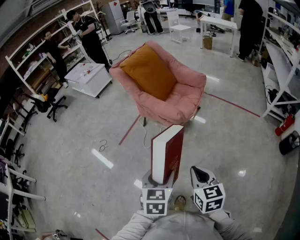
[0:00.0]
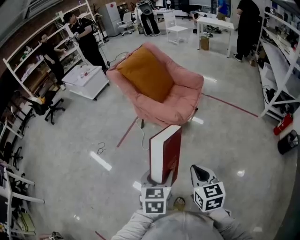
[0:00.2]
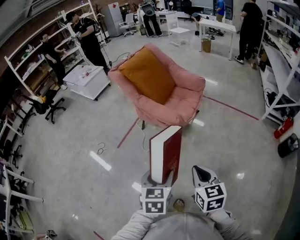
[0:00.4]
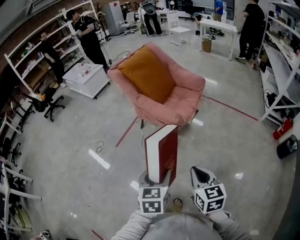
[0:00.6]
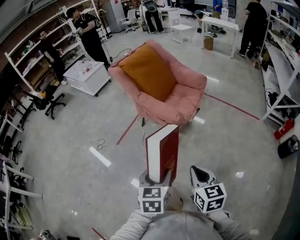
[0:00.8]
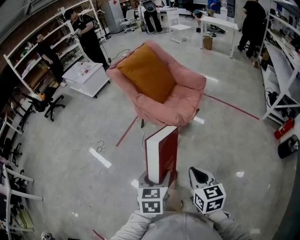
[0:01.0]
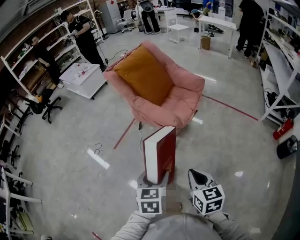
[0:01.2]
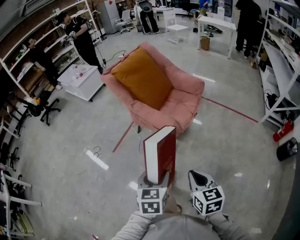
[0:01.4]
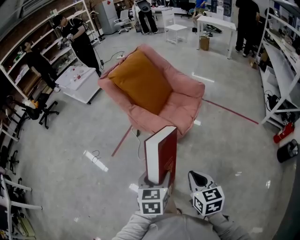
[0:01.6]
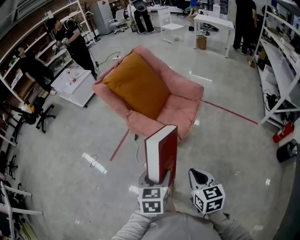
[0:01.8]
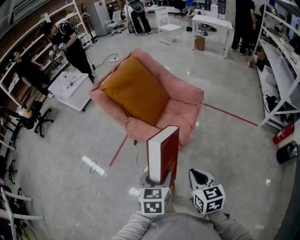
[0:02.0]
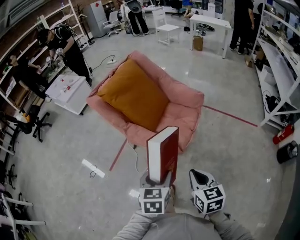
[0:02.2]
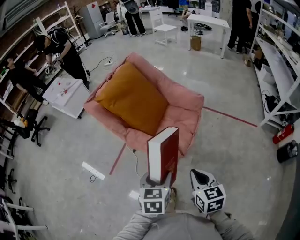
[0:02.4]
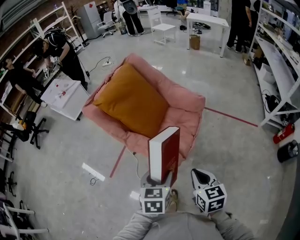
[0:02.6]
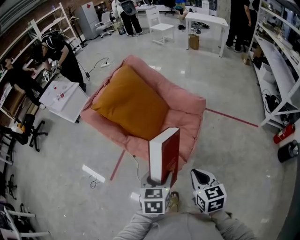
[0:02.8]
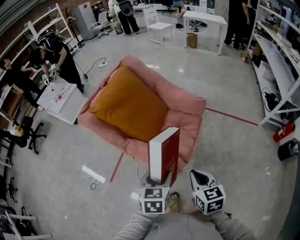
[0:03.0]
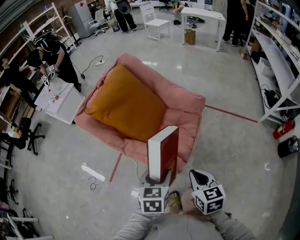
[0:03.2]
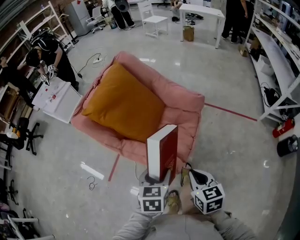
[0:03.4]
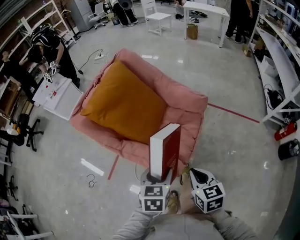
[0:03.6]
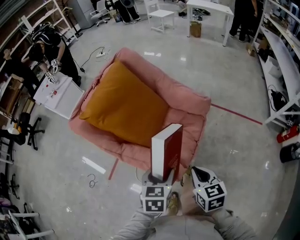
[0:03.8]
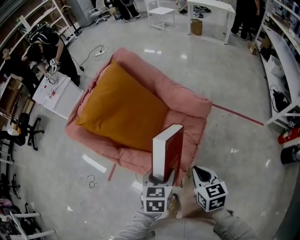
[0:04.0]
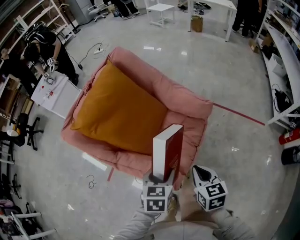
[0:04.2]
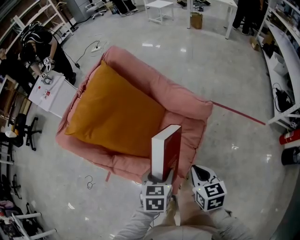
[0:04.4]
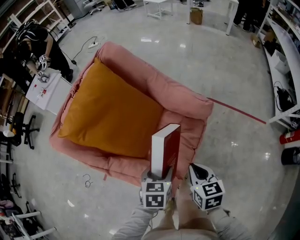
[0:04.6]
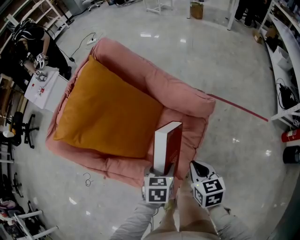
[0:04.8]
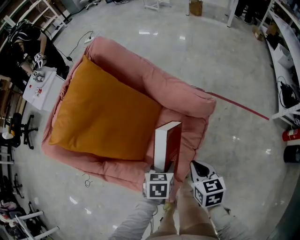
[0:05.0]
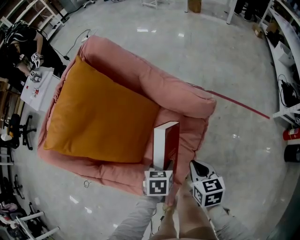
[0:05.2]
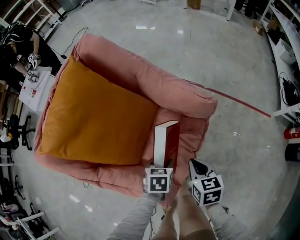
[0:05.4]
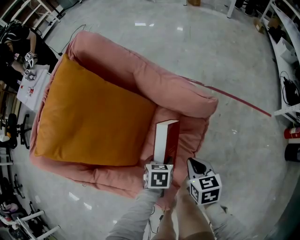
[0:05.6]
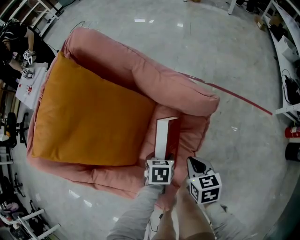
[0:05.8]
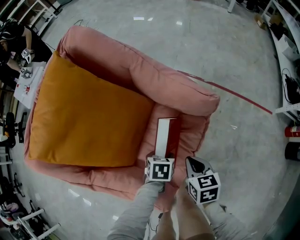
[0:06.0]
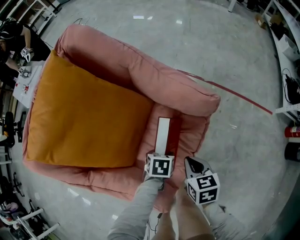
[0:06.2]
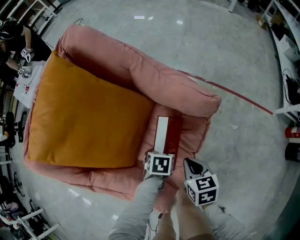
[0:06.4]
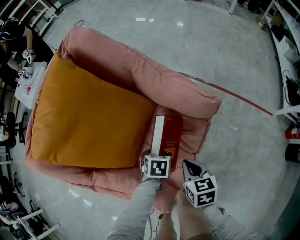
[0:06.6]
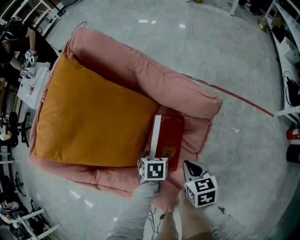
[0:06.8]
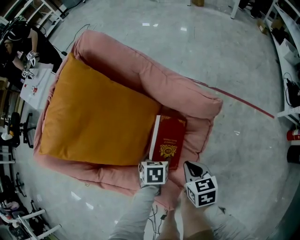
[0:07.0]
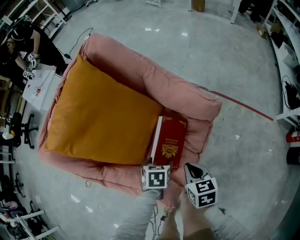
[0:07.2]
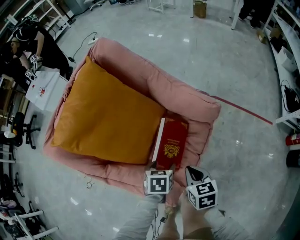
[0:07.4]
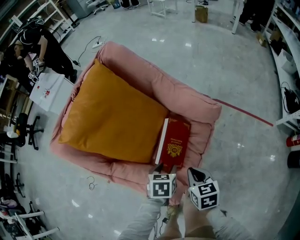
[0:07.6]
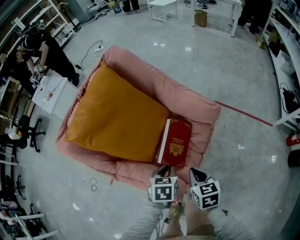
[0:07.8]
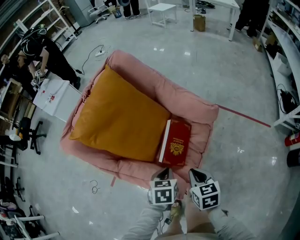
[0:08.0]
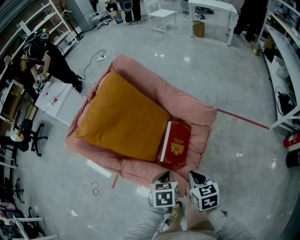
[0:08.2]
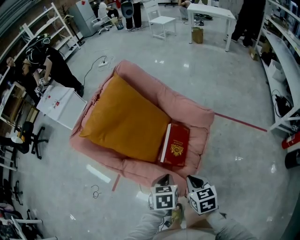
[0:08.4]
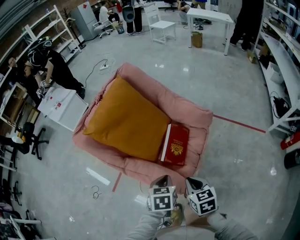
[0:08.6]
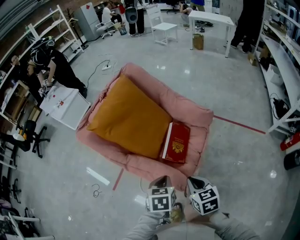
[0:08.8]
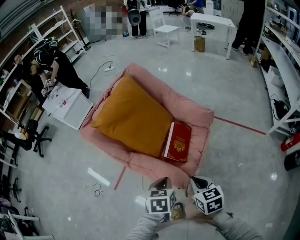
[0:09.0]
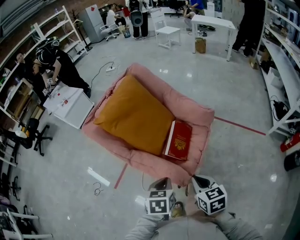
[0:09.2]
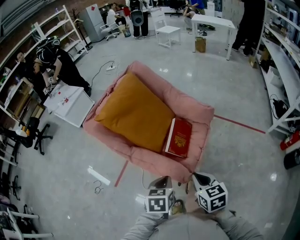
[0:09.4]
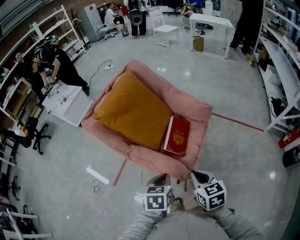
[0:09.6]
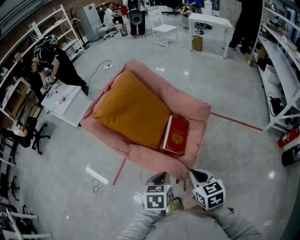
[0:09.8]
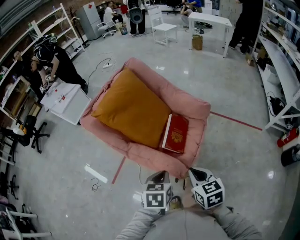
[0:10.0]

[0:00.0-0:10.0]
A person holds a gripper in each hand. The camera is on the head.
0:00.0 to 0:01.4: Both grippers travel together forward, approximately 10 cm.
0:01.4 to 0:02.8: Both grippers move forward, approximately 30 cm.
0:02.8 to 0:04.2: The grippers both shift forward by about 15 cm.
0:04.2 to 0:05.8: The two grippers go about 25 cm downward and forward. The left gripper swivels approximately 20 degrees.
0:05.8 to 0:07.2: The right gripper shifts by some 5 cm. The left gripper shifts by roughly 5 cm.
0:07.2 to 0:08.6: The right gripper goes approximately 20 cm backward and upward. Meanwhile the left gripper heads upward and backward, covering some 25 cm, and closes.
0:08.6 to 0:10.0: The right gripper heads backward and upward, covering some 10 cm. Meanwhile the left gripper goes approximately 10 cm backward.

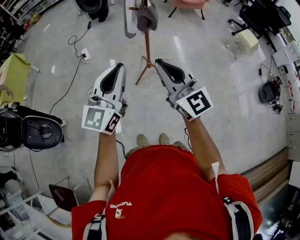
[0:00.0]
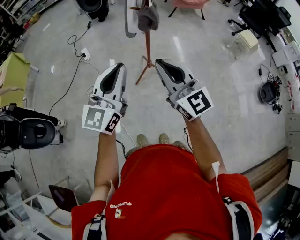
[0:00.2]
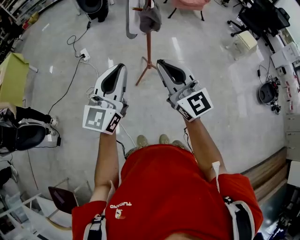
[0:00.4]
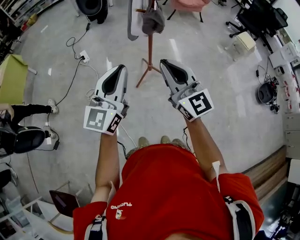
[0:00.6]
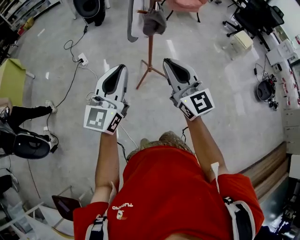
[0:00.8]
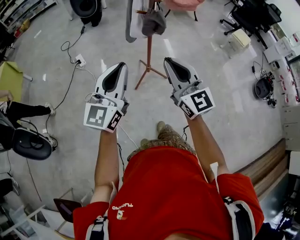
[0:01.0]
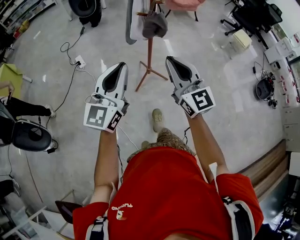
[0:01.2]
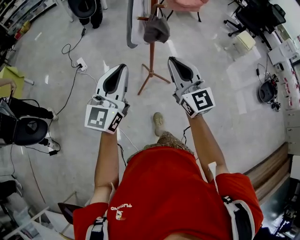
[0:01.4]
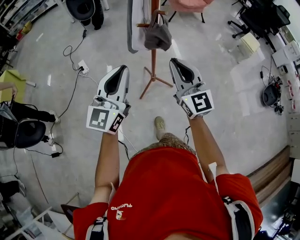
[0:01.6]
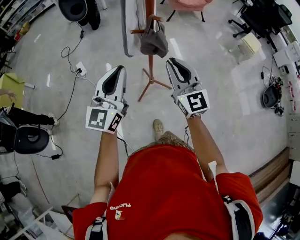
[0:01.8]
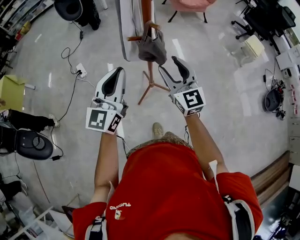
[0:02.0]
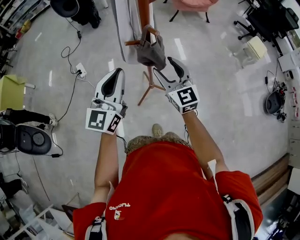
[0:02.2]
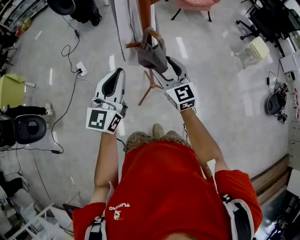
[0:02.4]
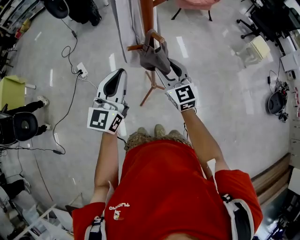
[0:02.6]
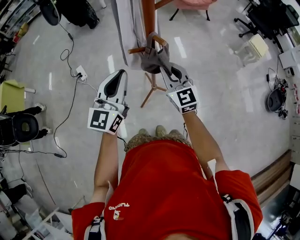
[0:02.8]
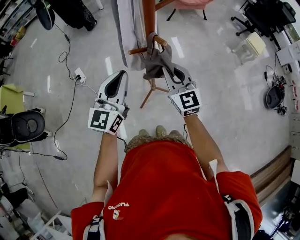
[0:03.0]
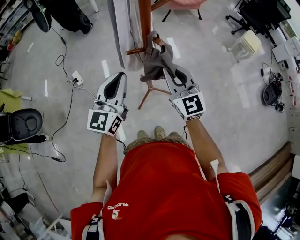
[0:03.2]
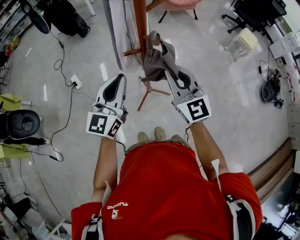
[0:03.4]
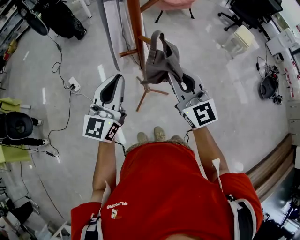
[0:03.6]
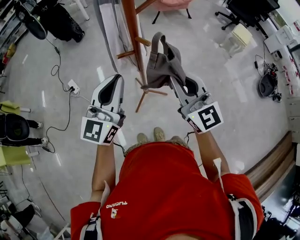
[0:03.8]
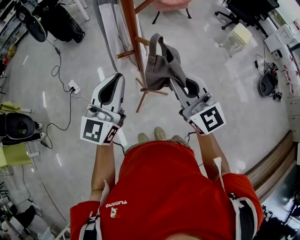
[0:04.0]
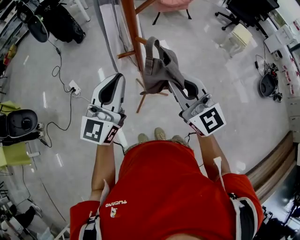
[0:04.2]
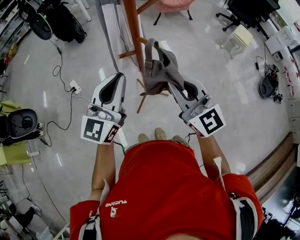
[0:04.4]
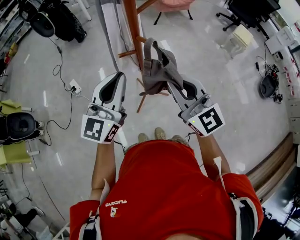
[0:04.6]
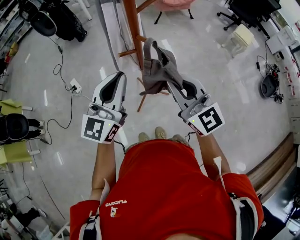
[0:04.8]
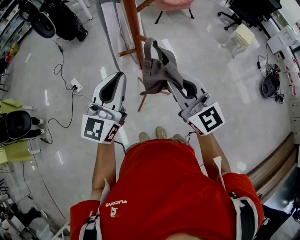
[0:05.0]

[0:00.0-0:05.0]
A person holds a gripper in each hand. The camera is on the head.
0:00.0 to 0:01.6: Both grippers move forward, roughly 20 cm.
0:01.6 to 0:03.4: Both grippers travel together forward, roughly 15 cm. The right gripper opens, then closes once more.
0:03.4 to 0:05.0: The right gripper moves backward, approximately 5 cm; the left gripper travels upward by roughly 5 cm.

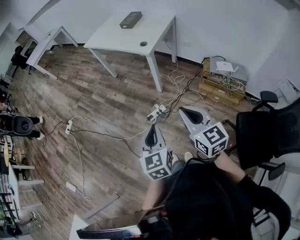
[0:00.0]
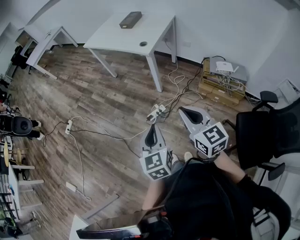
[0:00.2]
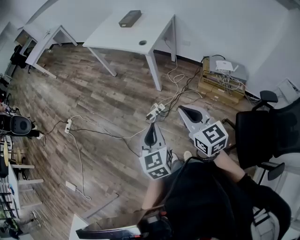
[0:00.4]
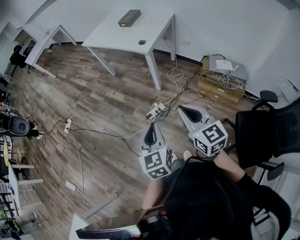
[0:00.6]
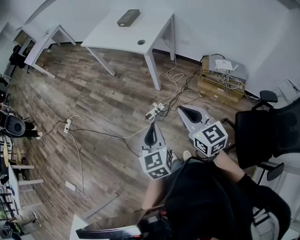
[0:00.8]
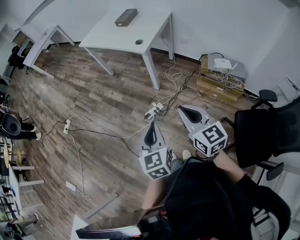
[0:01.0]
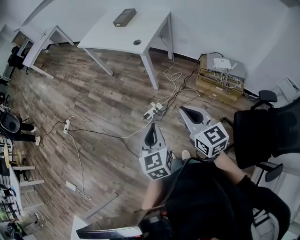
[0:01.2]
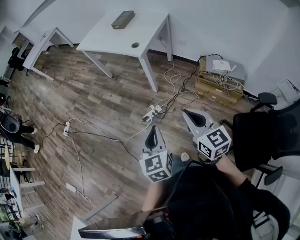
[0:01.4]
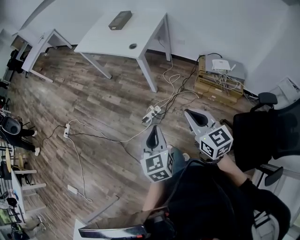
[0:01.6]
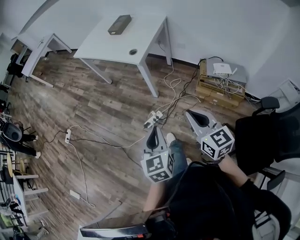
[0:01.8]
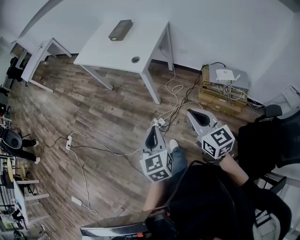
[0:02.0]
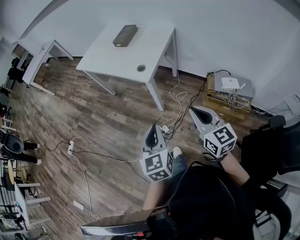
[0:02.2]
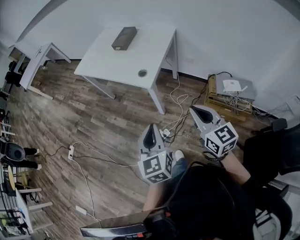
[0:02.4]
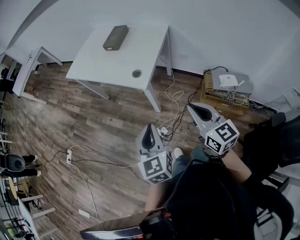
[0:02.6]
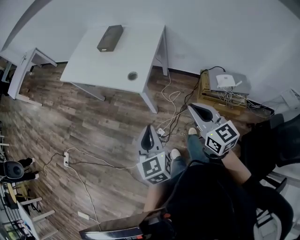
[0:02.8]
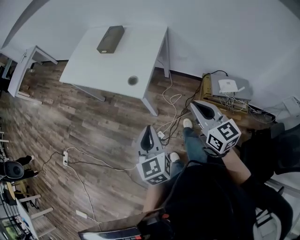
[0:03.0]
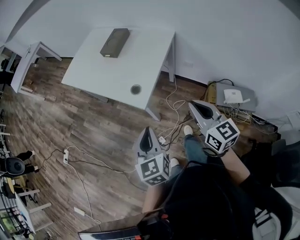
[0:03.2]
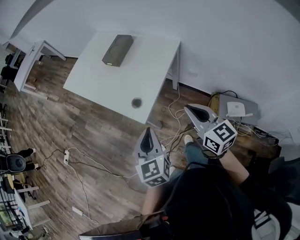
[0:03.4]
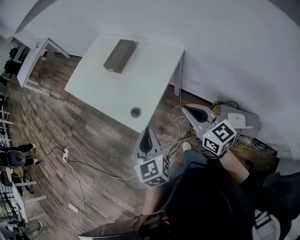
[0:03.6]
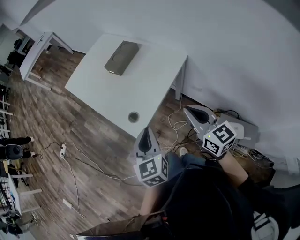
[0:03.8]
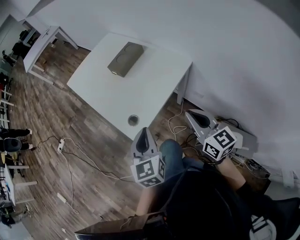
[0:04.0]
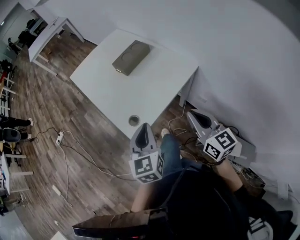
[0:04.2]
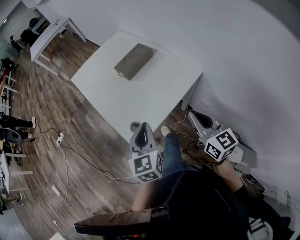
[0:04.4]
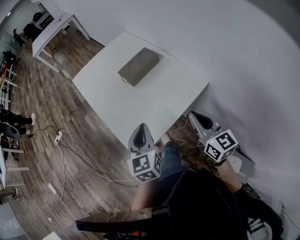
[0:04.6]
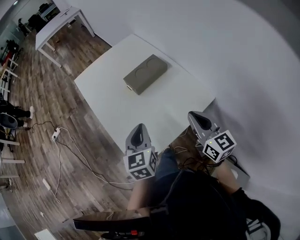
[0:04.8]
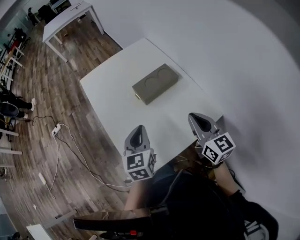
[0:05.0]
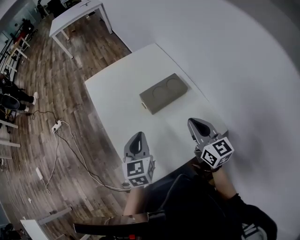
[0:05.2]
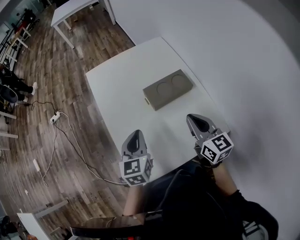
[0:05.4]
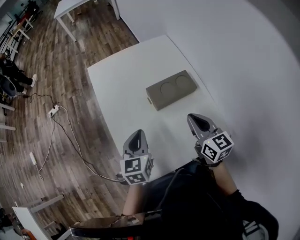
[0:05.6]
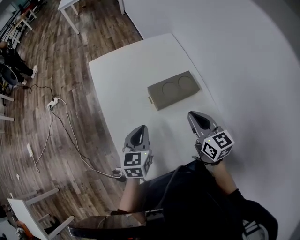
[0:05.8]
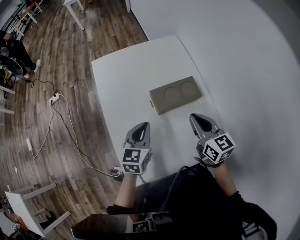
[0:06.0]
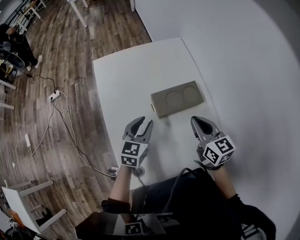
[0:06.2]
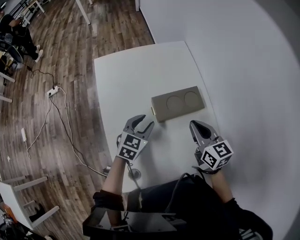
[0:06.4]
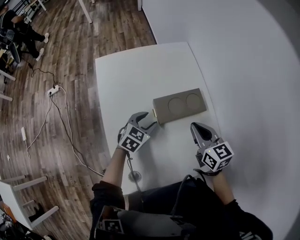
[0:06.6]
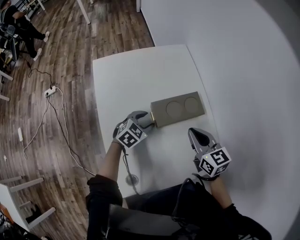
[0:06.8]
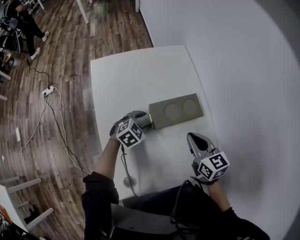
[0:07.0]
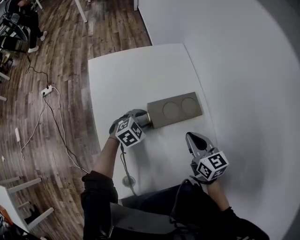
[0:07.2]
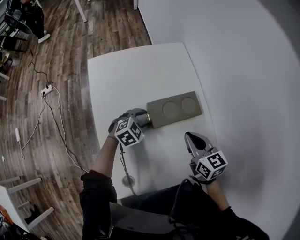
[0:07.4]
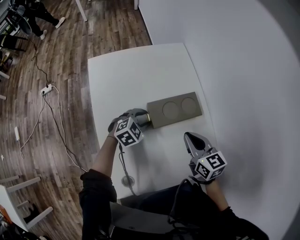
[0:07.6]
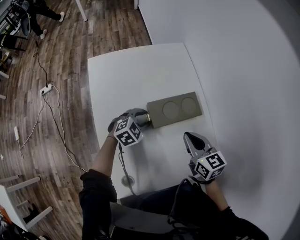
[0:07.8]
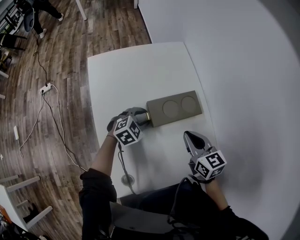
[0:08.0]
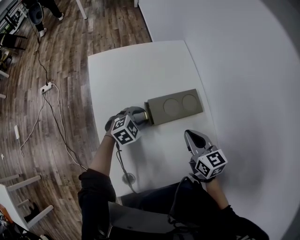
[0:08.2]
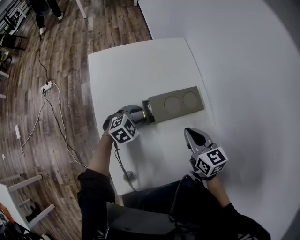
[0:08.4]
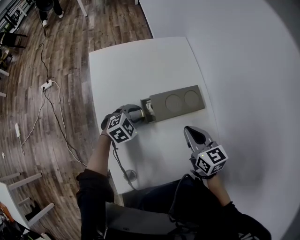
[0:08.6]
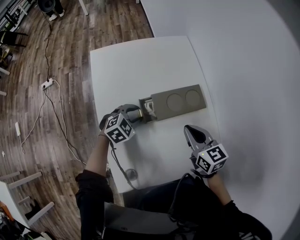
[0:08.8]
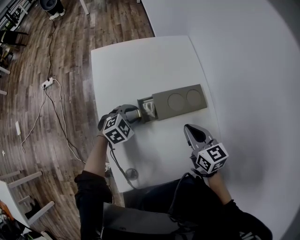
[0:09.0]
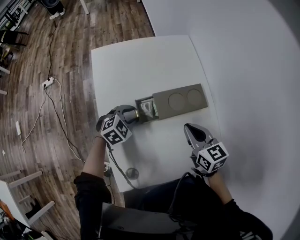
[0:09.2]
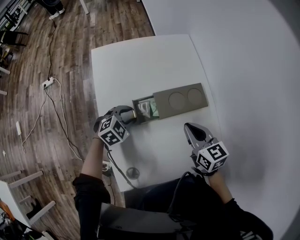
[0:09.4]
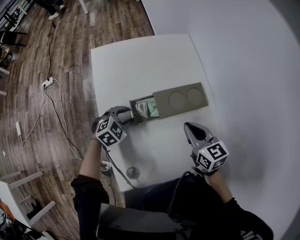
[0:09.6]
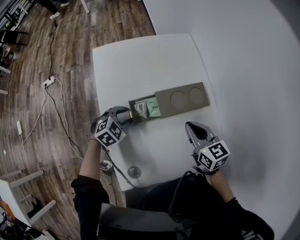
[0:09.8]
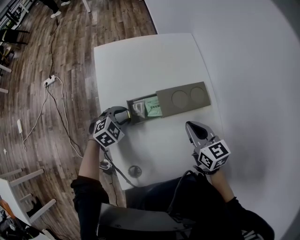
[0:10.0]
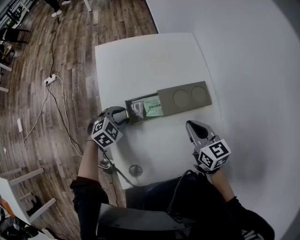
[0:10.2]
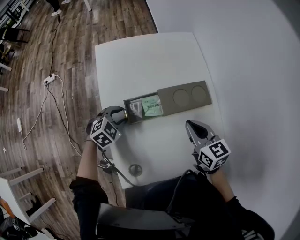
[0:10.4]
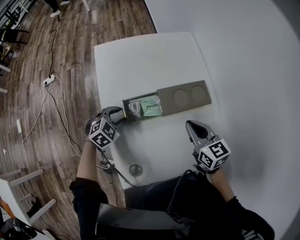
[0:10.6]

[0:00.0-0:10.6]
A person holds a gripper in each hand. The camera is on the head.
0:00.0 to 0:01.6: The grippers both shift to the right by roughly 10 cm.
0:01.6 to 0:03.0: The grippers both shift forward by approximately 35 cm.
0:03.0 to 0:04.6: Both grippers move forward and to the right, about 40 cm. The left gripper rotates roughly 20 degrees. Meanwhile the right gripper swivels approximately 30 degrees.
0:04.6 to 0:06.0: The two grippers go about 30 cm forward. The right gripper rotates some 20 degrees.
0:06.0 to 0:07.6: The right gripper heads downward, covering approximately 5 cm. The left gripper travels downward and forward by roughly 15 cm, changes its angle by some 50 degrees, and opens its fingers.
0:07.6 to 0:09.0: The left gripper travels to the left by some 5 cm.
0:09.0 to 0:10.6: The left gripper heads to the left, covering about 10 cm.
